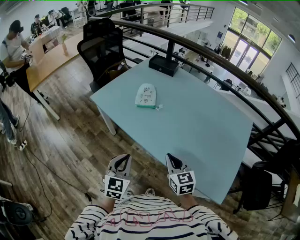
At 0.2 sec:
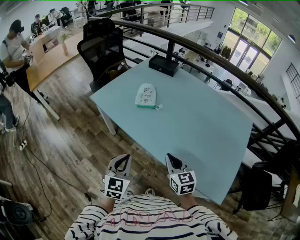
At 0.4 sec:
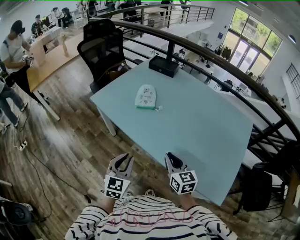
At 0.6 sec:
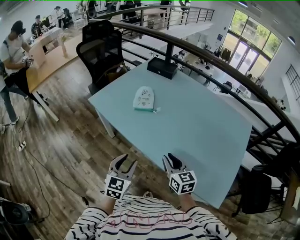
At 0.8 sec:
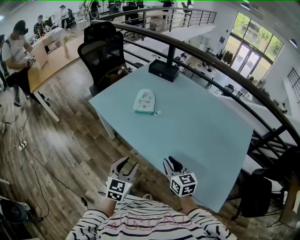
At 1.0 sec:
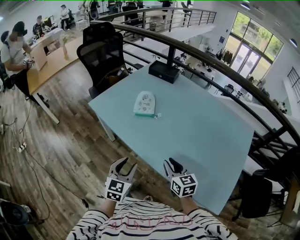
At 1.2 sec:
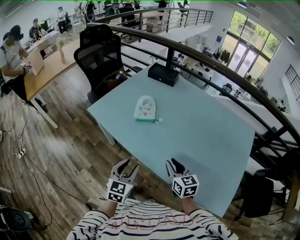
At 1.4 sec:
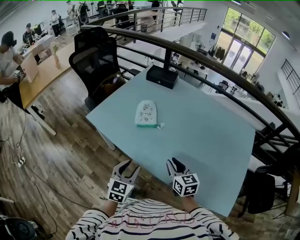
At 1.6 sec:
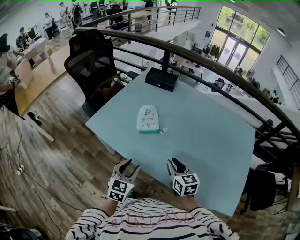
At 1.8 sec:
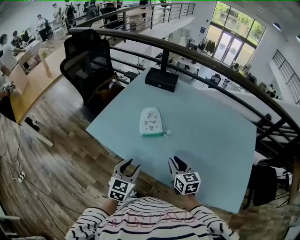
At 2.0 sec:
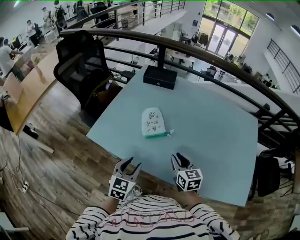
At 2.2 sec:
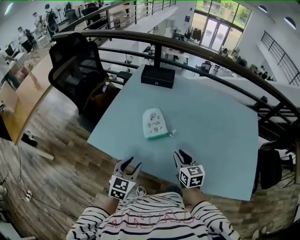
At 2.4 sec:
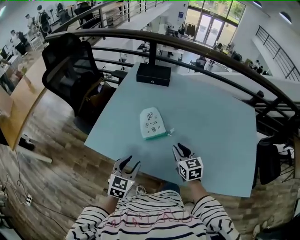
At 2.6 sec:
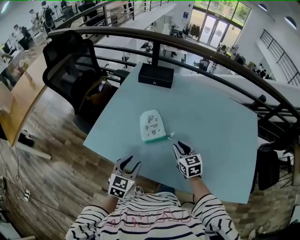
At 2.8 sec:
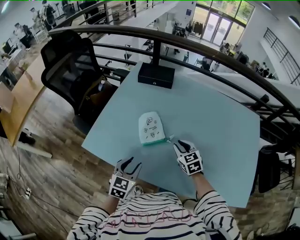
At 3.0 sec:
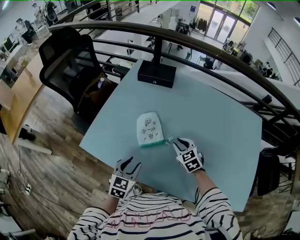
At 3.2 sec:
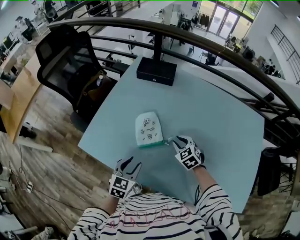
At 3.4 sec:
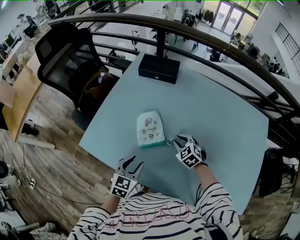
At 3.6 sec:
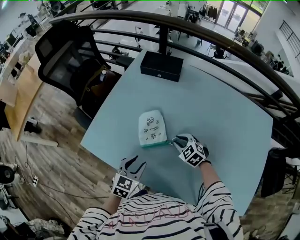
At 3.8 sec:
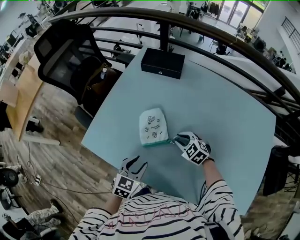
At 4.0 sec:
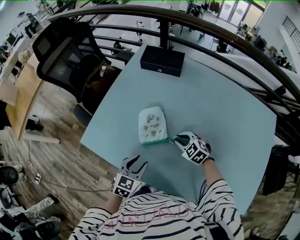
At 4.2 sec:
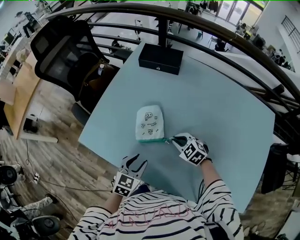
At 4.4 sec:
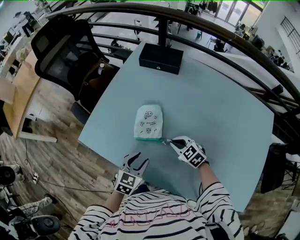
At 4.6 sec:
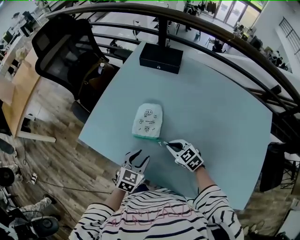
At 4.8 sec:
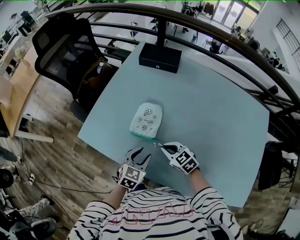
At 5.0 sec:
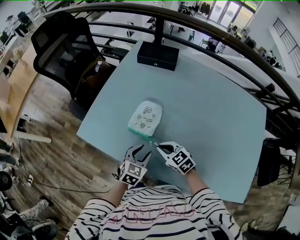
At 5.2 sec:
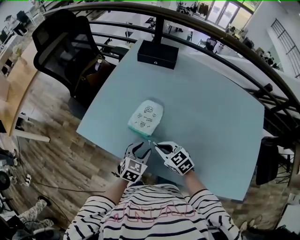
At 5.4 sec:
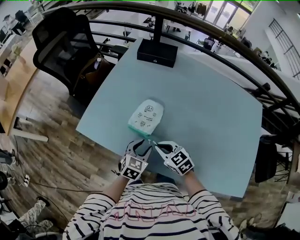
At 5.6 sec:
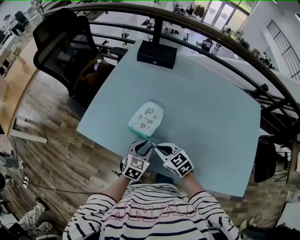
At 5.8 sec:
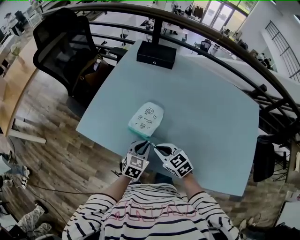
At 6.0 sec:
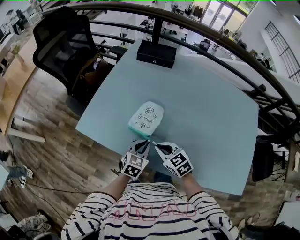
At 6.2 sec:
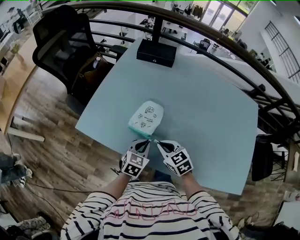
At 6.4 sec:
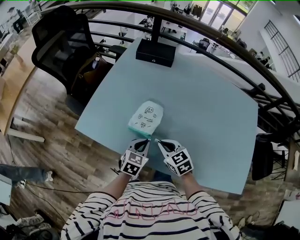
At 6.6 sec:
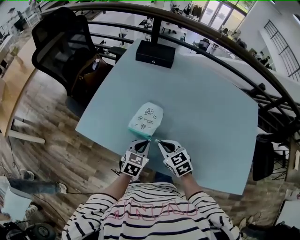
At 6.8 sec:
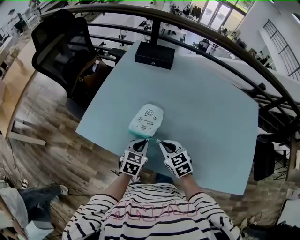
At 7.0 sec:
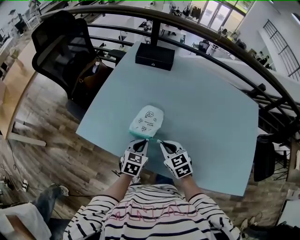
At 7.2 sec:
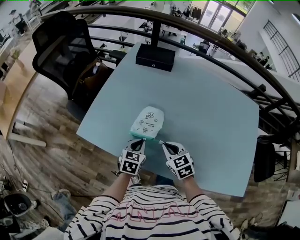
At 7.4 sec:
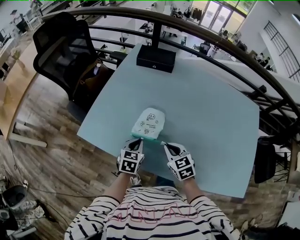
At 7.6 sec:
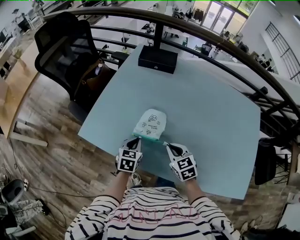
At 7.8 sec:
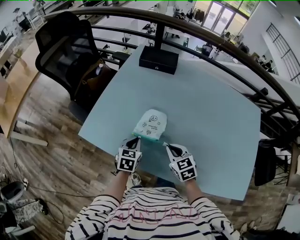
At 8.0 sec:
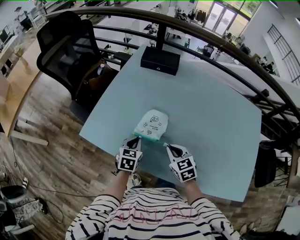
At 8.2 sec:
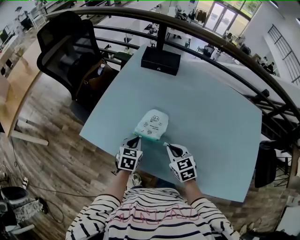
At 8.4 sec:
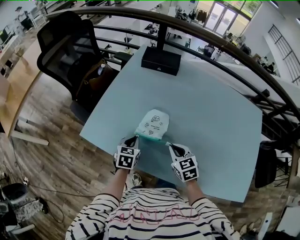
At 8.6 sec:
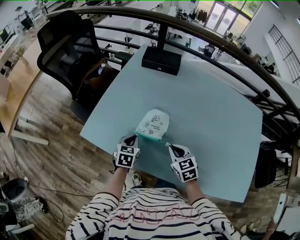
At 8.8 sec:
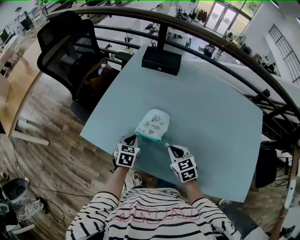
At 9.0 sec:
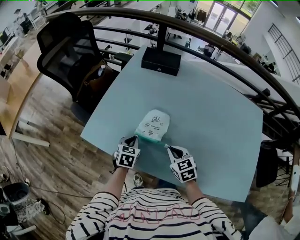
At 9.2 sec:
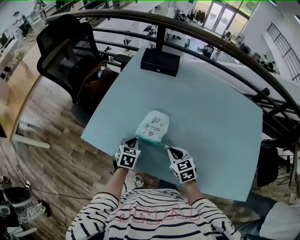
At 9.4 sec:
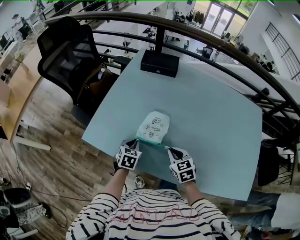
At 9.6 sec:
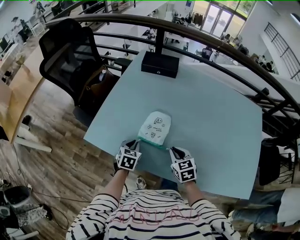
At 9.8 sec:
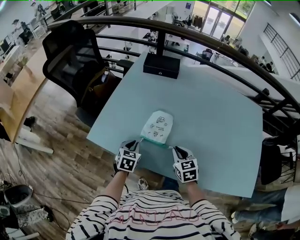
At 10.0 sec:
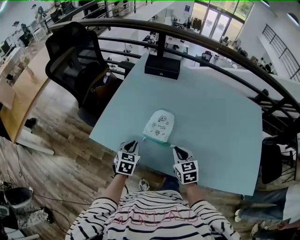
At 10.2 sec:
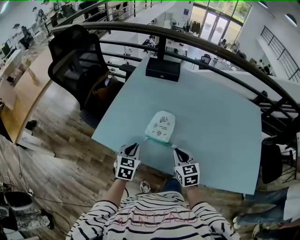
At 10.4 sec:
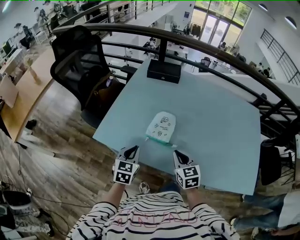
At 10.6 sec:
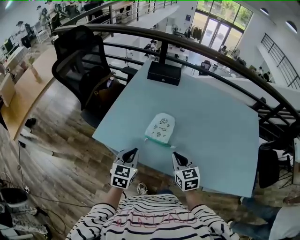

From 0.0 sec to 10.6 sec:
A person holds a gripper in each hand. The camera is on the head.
From 0.0 sec to 1.6 sec: Both grippers move forward, approximately 15 cm. The left gripper opens up.
From 1.6 sec to 3.0 sec: The grippers both shift forward by roughly 20 cm. The right gripper swivels some 30 degrees.
From 3.0 sec to 4.6 sec: The left gripper changes place by some 5 cm. The right gripper moves about 5 cm, and changes its angle by about 20 degrees.
From 4.6 sec to 6.0 sec: The right gripper shifts some 10 cm to the left and backward. Meanwhile the left gripper closes.
From 6.0 sec to 7.6 sec: The right gripper ends up roughly 5 cm from where it was. The left gripper is displaced to the left and forward by some 10 cm.
From 7.6 sec to 9.0 sec: There are only small adjustments of the grippers.
From 9.0 sec to 10.6 sec: The left gripper travels upward and backward by approximately 15 cm, while the right gripper heads backward and upward, covering some 10 cm.

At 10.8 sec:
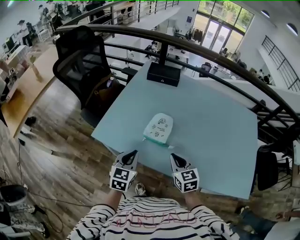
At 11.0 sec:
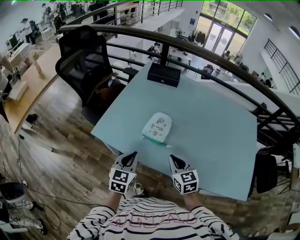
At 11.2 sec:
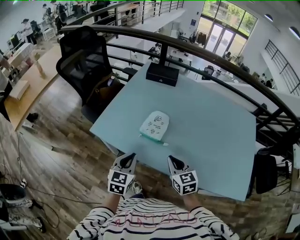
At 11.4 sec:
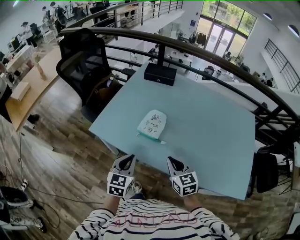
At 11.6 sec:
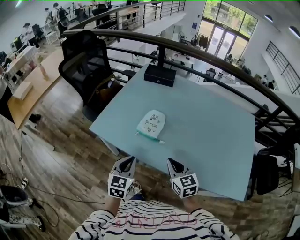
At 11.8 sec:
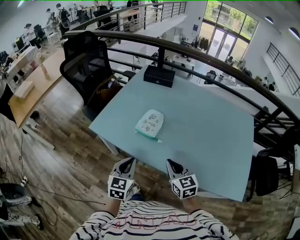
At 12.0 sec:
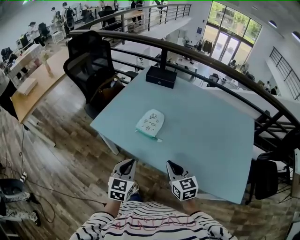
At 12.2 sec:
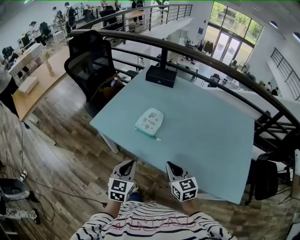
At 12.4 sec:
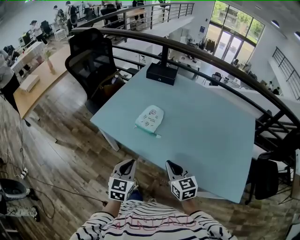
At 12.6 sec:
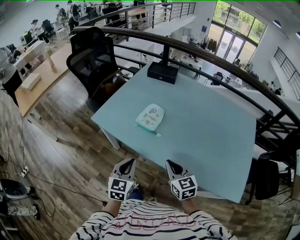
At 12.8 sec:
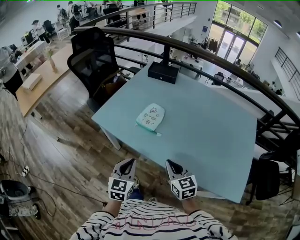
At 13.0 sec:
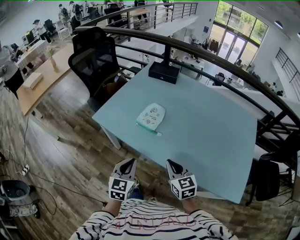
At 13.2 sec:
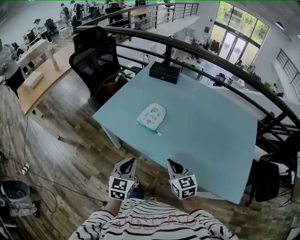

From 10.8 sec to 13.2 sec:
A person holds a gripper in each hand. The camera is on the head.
From 10.8 sec to 12.0 sec: Both grippers travel together backward and to the right, roughly 15 cm.
From 12.0 sec to 13.2 sec: The grippers make only small movements.

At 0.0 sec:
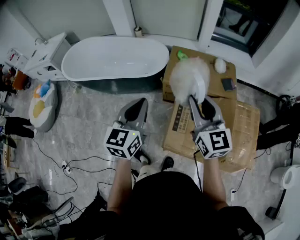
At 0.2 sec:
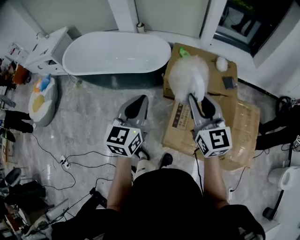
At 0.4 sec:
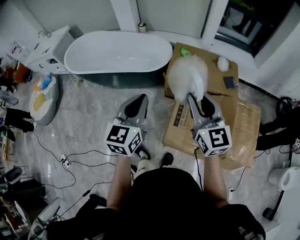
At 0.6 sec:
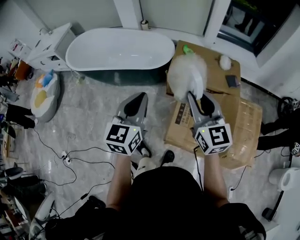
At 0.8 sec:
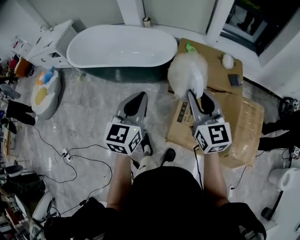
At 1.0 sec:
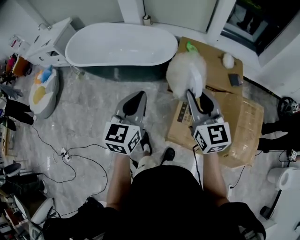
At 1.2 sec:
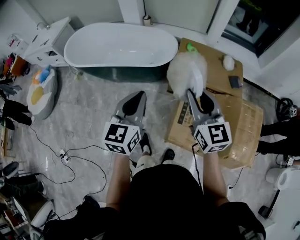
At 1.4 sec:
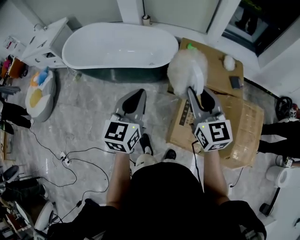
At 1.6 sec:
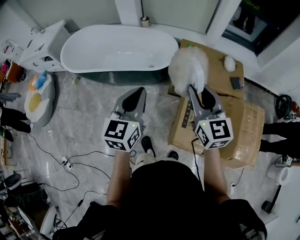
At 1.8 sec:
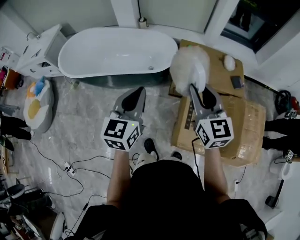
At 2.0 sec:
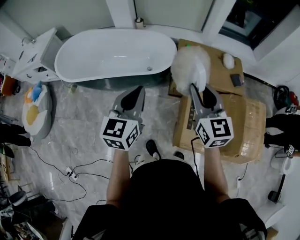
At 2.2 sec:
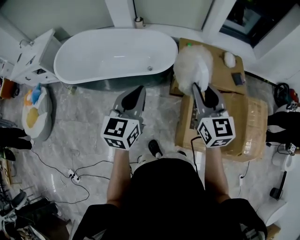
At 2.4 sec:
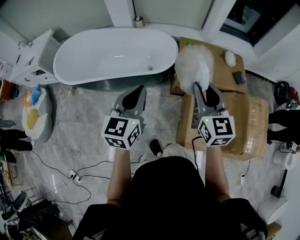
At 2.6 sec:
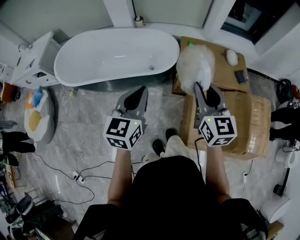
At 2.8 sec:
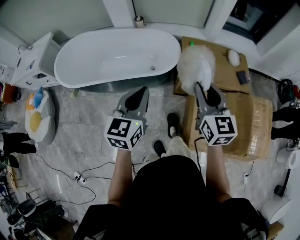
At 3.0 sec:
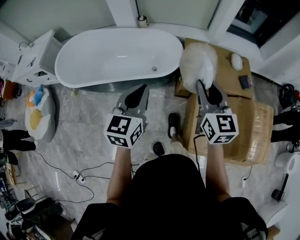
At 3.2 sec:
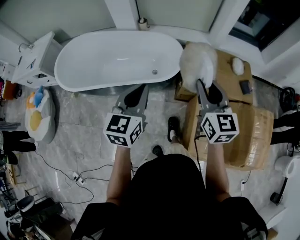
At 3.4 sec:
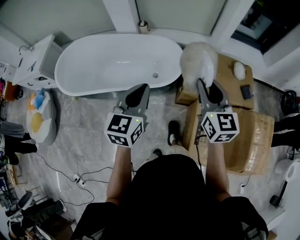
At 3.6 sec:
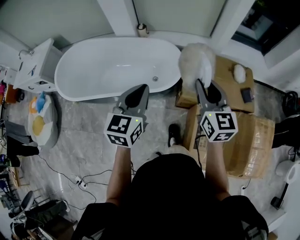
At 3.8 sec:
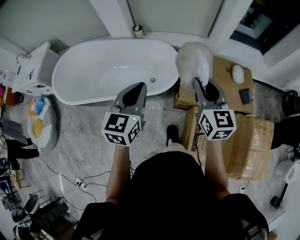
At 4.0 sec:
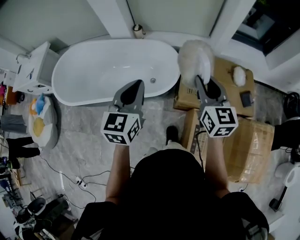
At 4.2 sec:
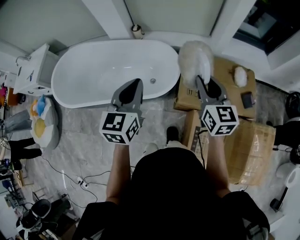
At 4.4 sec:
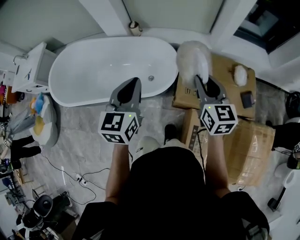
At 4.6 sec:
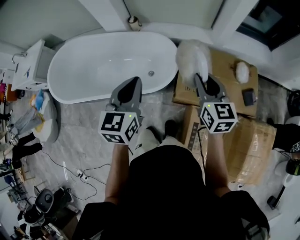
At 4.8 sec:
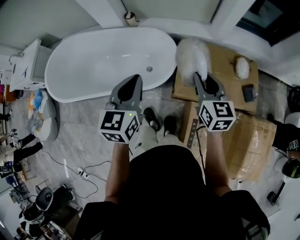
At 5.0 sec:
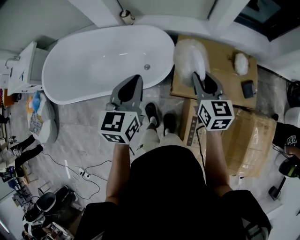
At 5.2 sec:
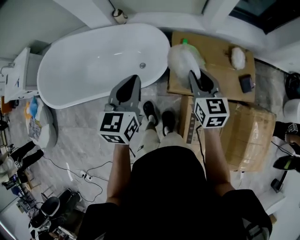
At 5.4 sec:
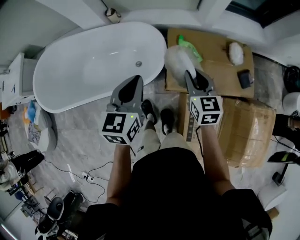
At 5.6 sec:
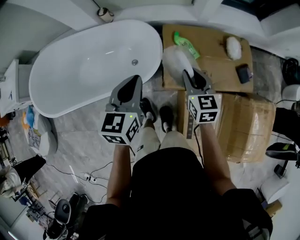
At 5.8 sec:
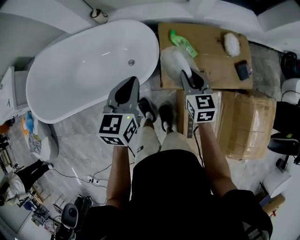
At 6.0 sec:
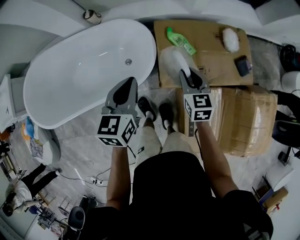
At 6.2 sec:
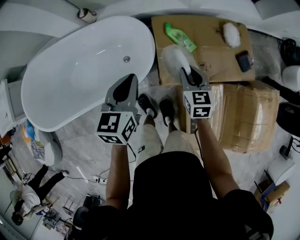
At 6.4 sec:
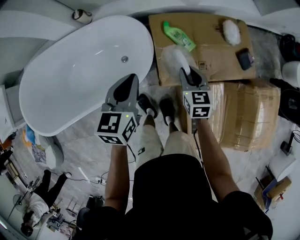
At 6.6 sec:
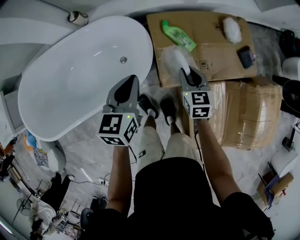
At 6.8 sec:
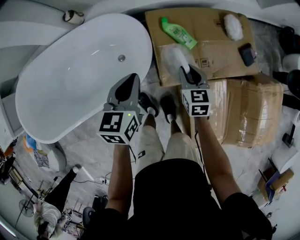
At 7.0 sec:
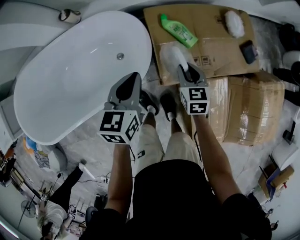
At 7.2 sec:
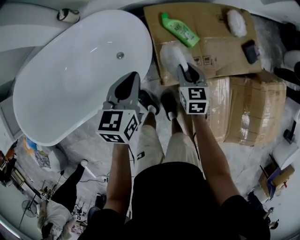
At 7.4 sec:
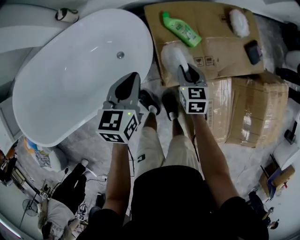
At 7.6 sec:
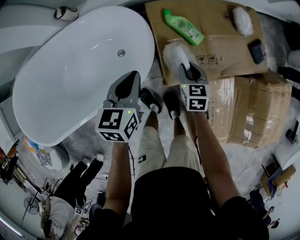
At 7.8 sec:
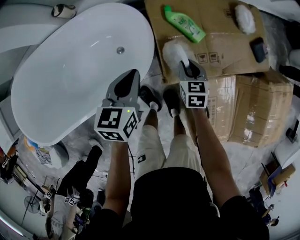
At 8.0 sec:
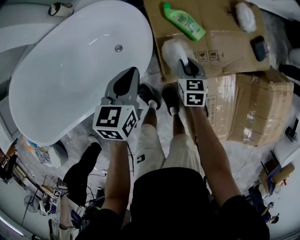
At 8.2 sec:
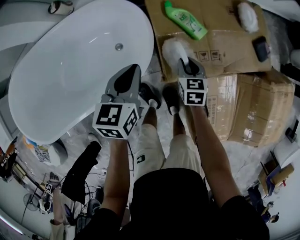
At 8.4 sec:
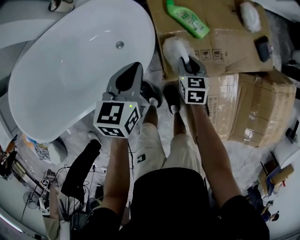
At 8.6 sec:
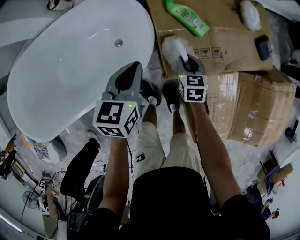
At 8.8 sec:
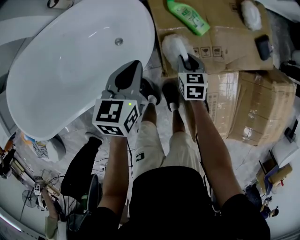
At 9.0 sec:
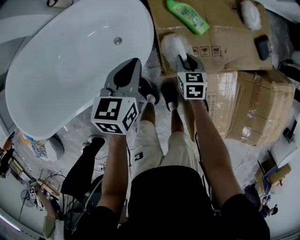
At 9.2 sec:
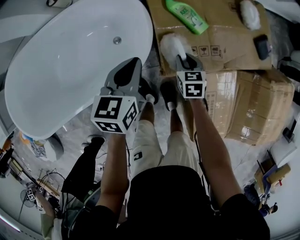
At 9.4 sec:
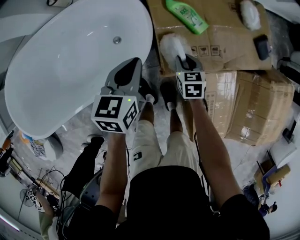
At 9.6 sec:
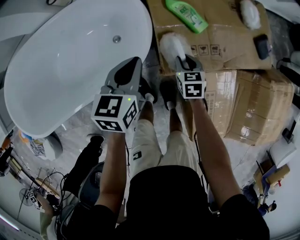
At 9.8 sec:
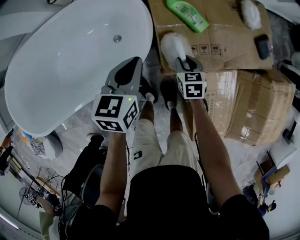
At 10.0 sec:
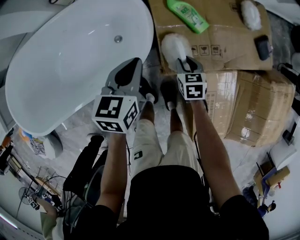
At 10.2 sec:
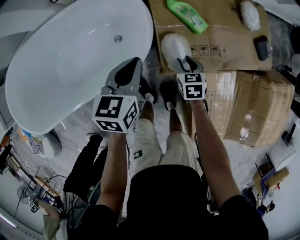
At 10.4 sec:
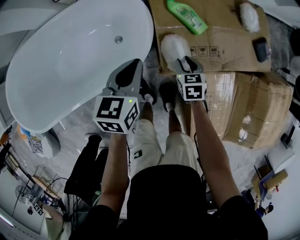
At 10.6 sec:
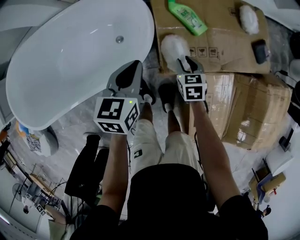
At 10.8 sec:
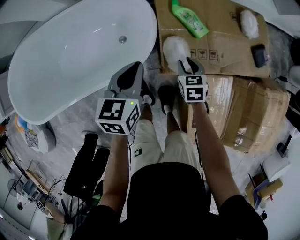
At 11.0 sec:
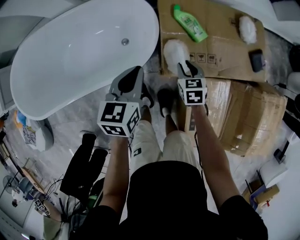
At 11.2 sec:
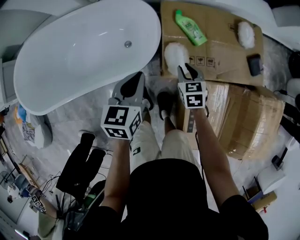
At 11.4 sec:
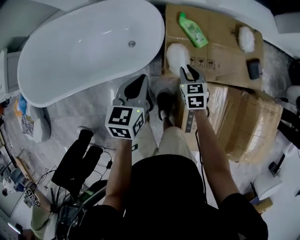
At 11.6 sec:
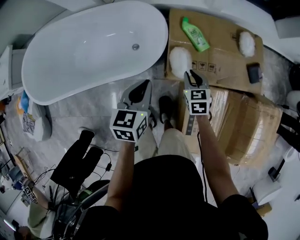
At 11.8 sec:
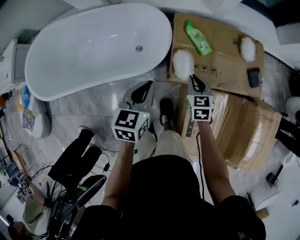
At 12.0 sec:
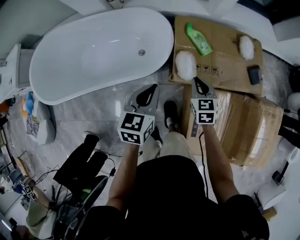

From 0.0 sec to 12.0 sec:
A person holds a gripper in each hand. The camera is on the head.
From 0.0 sec to 1.6 sec: Both grippers travel together to the left and forward, approximately 15 cm.
From 1.6 sec to 3.0 sec: Both grippers travel together forward and to the left, about 15 cm.
From 3.0 sec to 4.4 sec: The two grippers go approximately 25 cm forward.
From 4.4 sec to 6.0 sec: The left gripper heads downward, forward and to the right, covering roughly 20 cm. Meanwhile the right gripper heads downward, covering some 20 cm, and changes its angle by about 20 degrees.
From 6.0 sec to 7.6 sec: The right gripper goes roughly 20 cm downward. The left gripper travels downward and forward by approximately 20 cm.
From 7.6 sec to 9.0 sec: The right gripper shifts roughly 5 cm downward.
From 9.0 sec to 10.4 sec: The grippers stay close to where they were, moving slightly.
From 10.4 sec to 12.0 sec: The left gripper shifts approximately 20 cm backward and upward. Meanwhile the right gripper moves upward and backward, roughly 20 cm, and turns by roughly 20 degrees.
